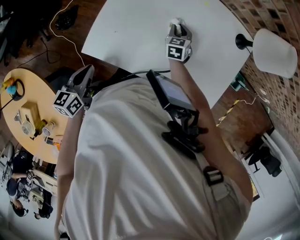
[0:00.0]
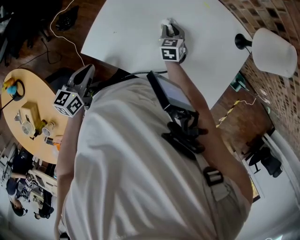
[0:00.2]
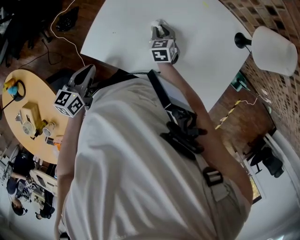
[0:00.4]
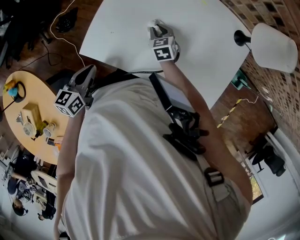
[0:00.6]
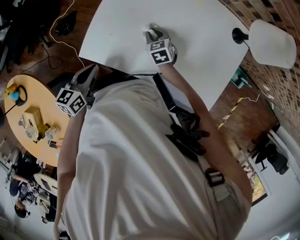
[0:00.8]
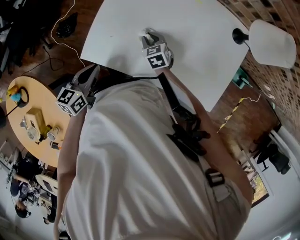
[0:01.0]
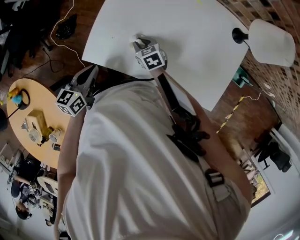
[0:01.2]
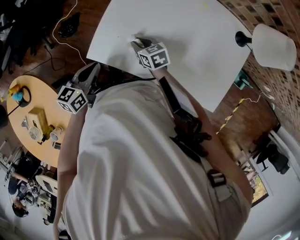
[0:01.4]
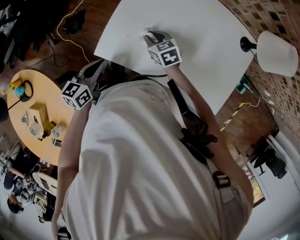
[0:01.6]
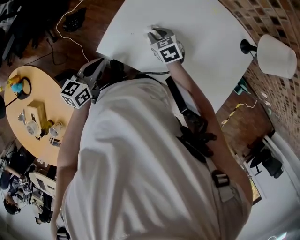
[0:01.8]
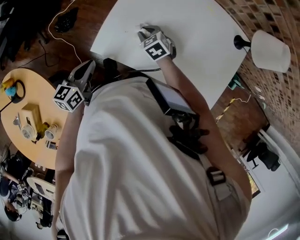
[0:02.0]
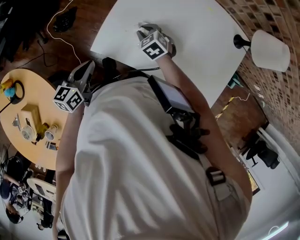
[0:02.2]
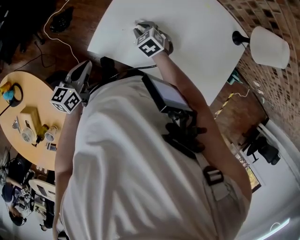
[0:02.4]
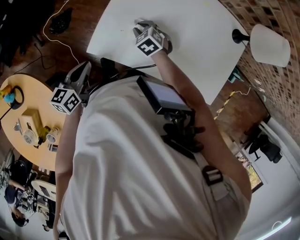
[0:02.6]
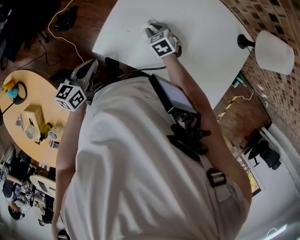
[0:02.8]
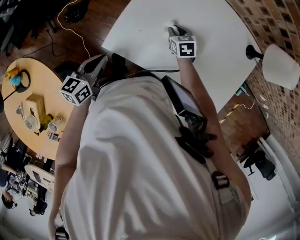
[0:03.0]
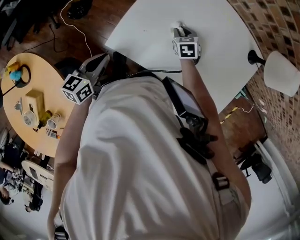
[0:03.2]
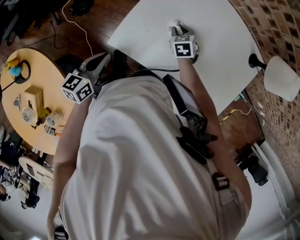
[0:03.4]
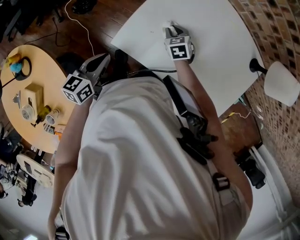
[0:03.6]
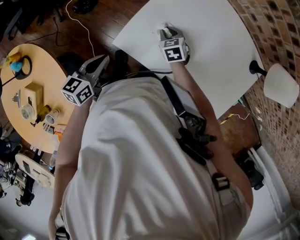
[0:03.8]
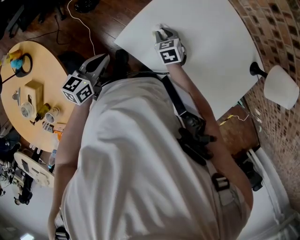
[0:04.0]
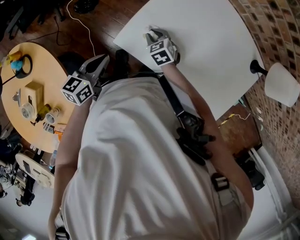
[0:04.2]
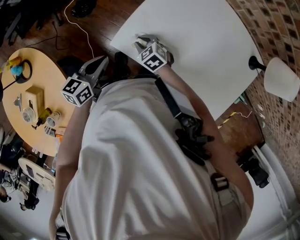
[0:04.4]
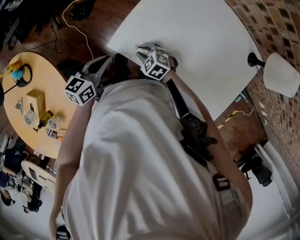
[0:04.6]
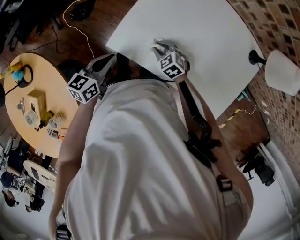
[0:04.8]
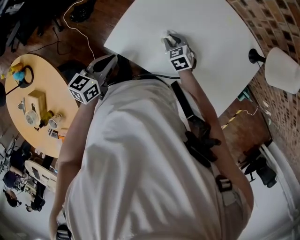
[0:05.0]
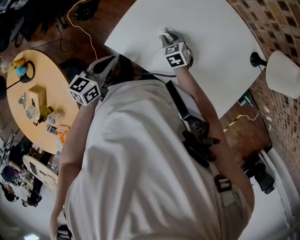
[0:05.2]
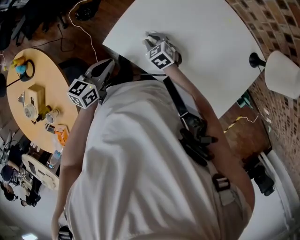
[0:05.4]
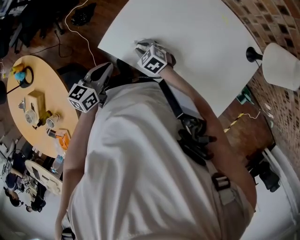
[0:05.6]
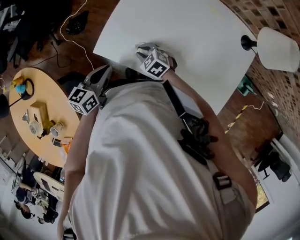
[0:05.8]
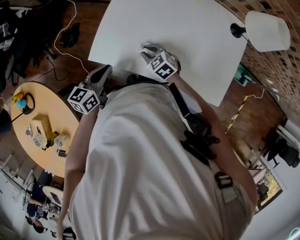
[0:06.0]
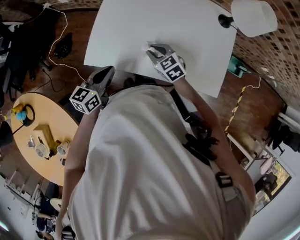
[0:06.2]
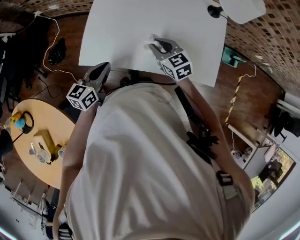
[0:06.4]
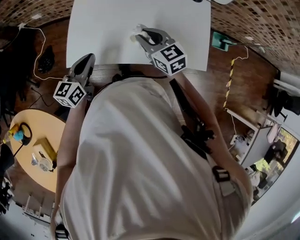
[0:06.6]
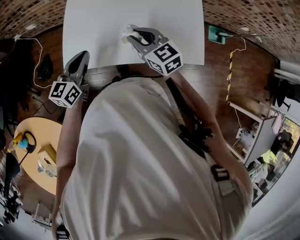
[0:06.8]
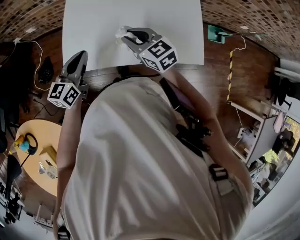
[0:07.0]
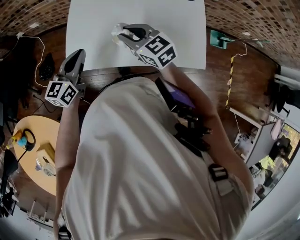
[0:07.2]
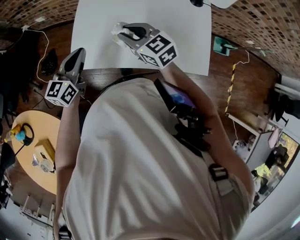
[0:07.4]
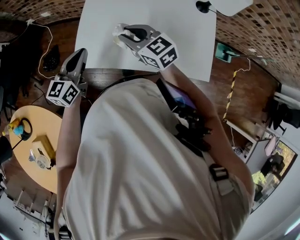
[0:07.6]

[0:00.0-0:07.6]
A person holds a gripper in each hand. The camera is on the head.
0:00.0 to 0:01.6: The right gripper shifts roughly 20 cm to the left and backward, and rotates approximately 40 degrees.
0:01.6 to 0:03.0: The right gripper shifts roughly 5 cm to the right.
0:03.0 to 0:04.6: The right gripper moves some 20 cm, and twists approximately 40 degrees counterclockwise, seen from behind.
0:04.6 to 0:06.0: The right gripper goes left and right, approximately 15 cm each way, reversing 2 times, and swivels approximately 20 degrees. The left gripper heads to the right, covering some 10 cm.
0:06.0 to 0:07.6: The right gripper heads upward, covering roughly 20 cm, and swivels roughly 30 degrees; the left gripper shifts about 10 cm upward and forward.

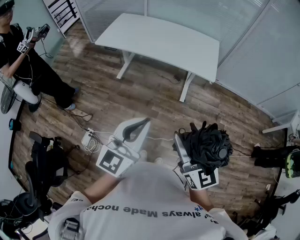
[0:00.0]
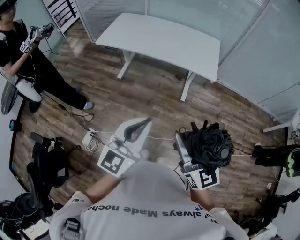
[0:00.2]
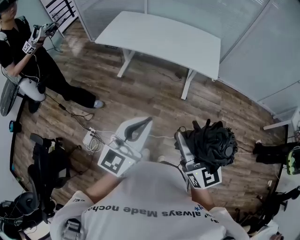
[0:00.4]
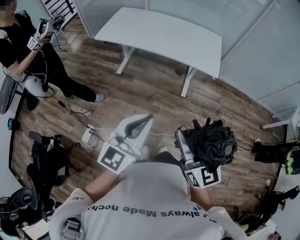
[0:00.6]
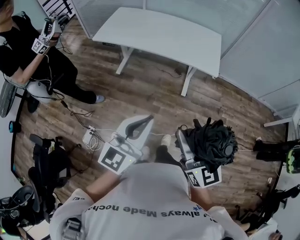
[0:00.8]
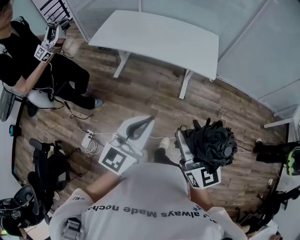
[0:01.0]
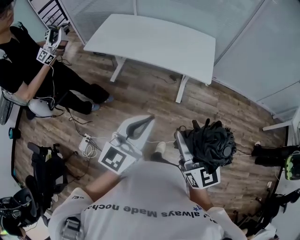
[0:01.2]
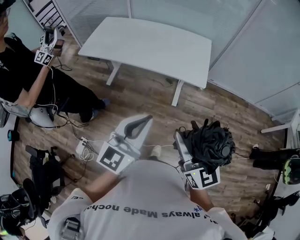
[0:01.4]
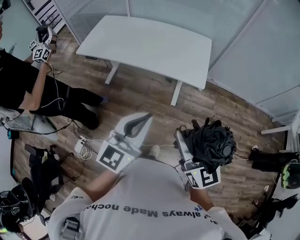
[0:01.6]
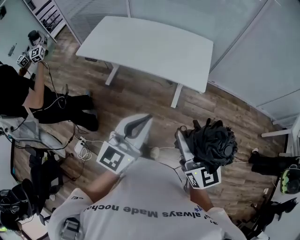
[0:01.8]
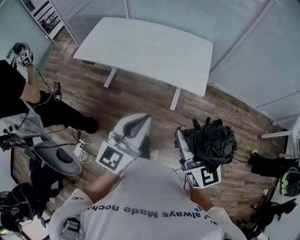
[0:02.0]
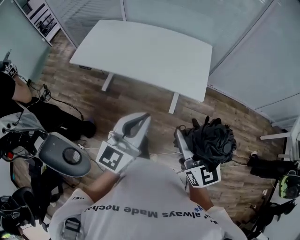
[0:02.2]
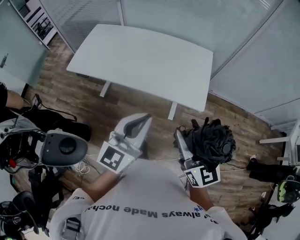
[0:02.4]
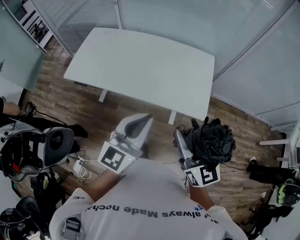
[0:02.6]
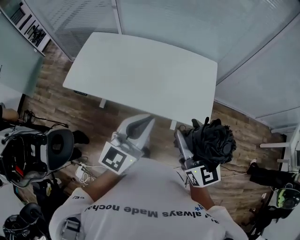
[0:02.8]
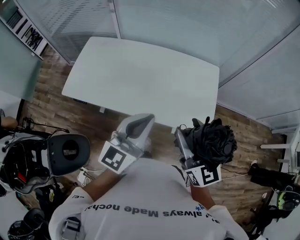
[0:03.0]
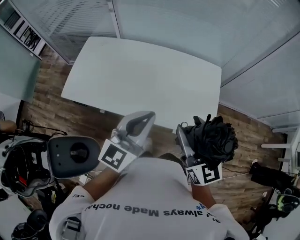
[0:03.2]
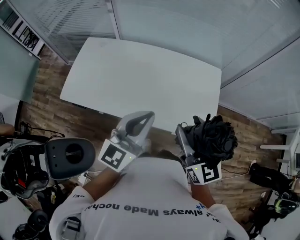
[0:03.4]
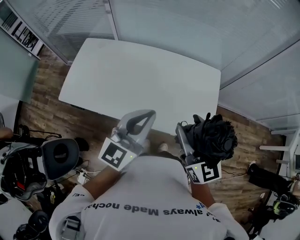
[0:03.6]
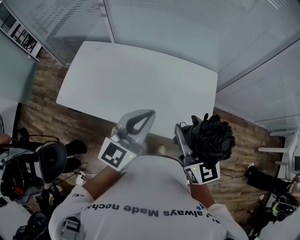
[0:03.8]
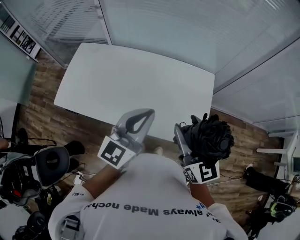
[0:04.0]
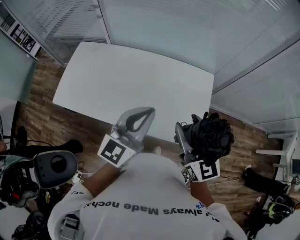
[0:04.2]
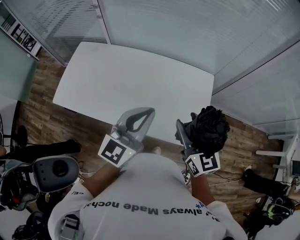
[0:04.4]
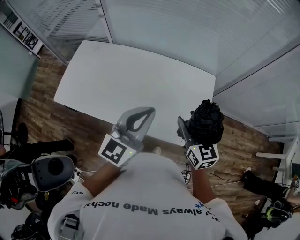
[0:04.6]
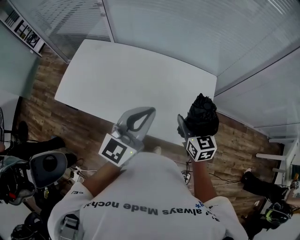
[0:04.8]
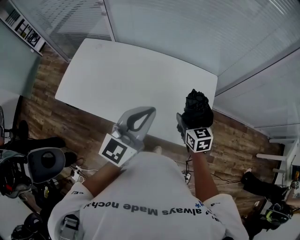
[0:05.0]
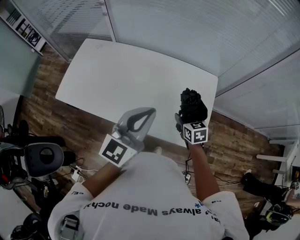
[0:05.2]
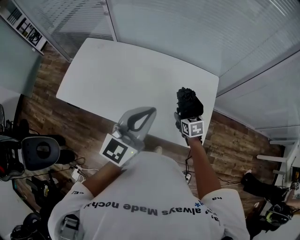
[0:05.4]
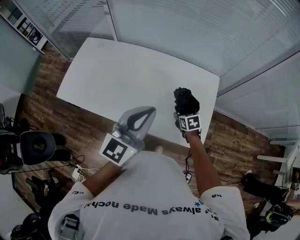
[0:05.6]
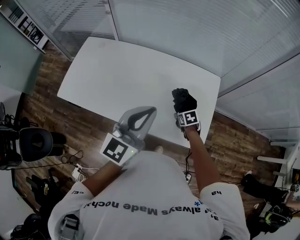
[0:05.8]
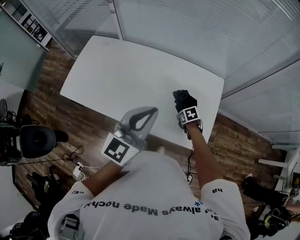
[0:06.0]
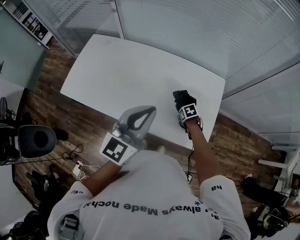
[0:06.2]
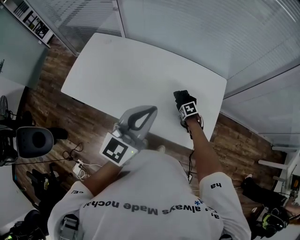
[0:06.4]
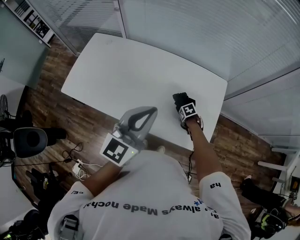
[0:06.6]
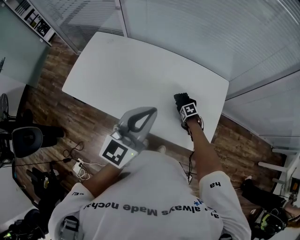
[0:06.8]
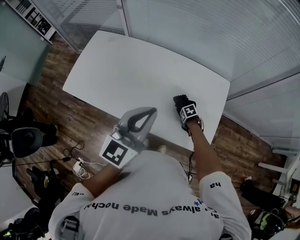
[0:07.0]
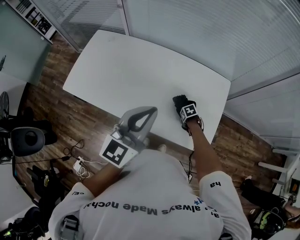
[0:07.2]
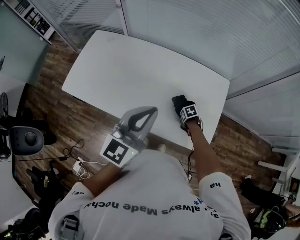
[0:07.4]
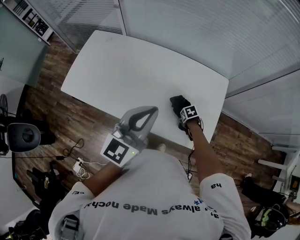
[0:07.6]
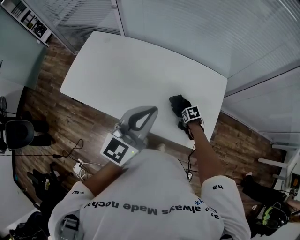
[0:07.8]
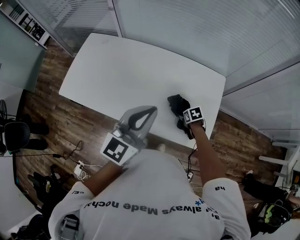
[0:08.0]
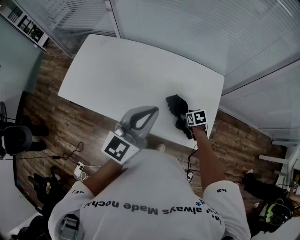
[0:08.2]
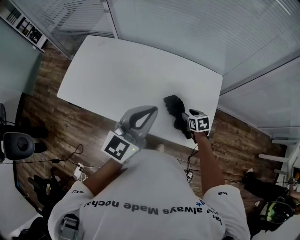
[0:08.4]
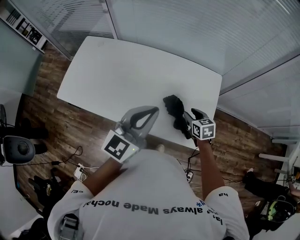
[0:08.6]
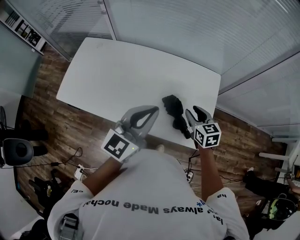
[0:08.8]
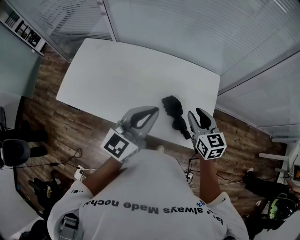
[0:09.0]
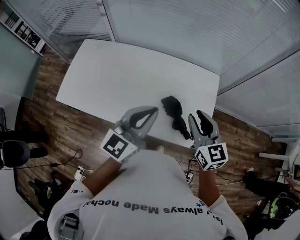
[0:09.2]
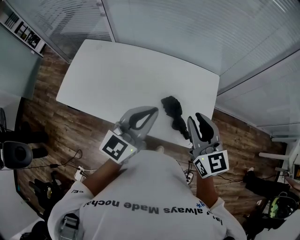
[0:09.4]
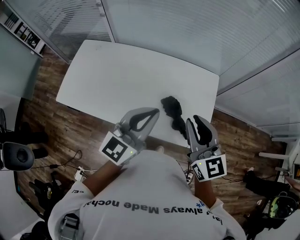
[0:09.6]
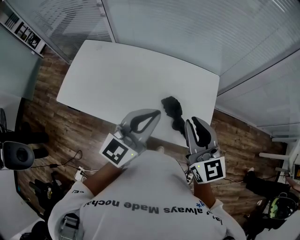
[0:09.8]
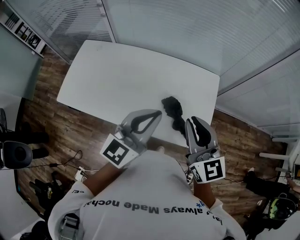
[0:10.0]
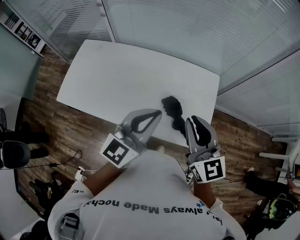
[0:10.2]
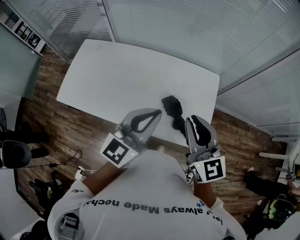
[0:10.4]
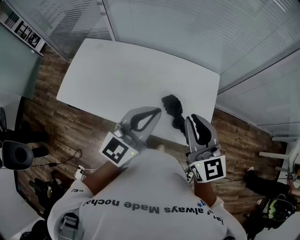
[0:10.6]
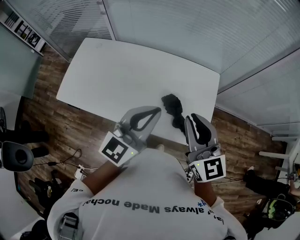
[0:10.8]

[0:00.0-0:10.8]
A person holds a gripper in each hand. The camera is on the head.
0:00.0 to 0:01.6: Both grippers move forward and to the right, some 25 cm.
0:01.6 to 0:03.0: The pair of grippers is taken forward, roughly 50 cm.
0:03.0 to 0:04.6: The right gripper travels forward, downward and to the right by about 25 cm, while the left gripper is displaced forward and to the right by approximately 20 cm.
0:04.6 to 0:06.2: The right gripper shifts roughly 35 cm downward, and points its fingers roughly 60 degrees further downward.
0:06.2 to 0:07.8: The grippers move only a little.
0:07.8 to 0:09.2: The right gripper shifts some 35 cm upward, tips its fingers upward by about 60 degrees, and closes its fingers.
0:09.2 to 0:10.8: The right gripper heads upward, covering about 5 cm.

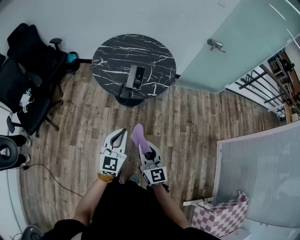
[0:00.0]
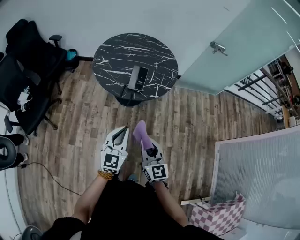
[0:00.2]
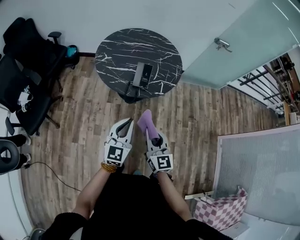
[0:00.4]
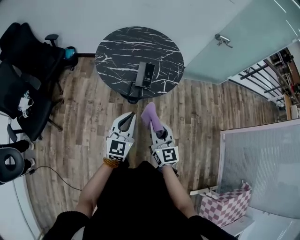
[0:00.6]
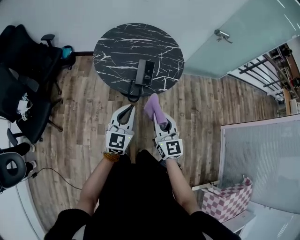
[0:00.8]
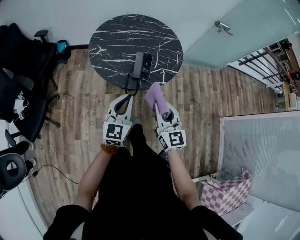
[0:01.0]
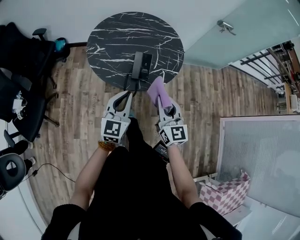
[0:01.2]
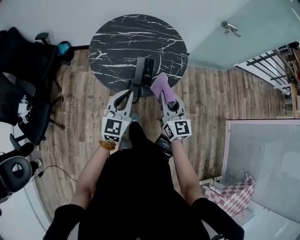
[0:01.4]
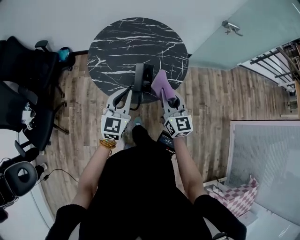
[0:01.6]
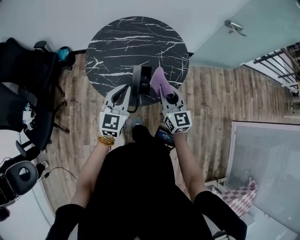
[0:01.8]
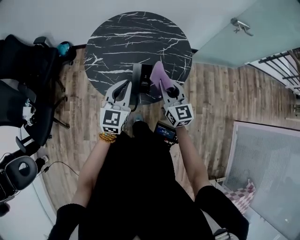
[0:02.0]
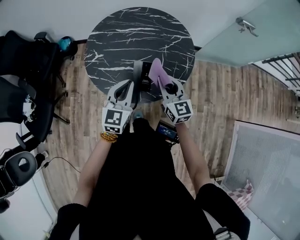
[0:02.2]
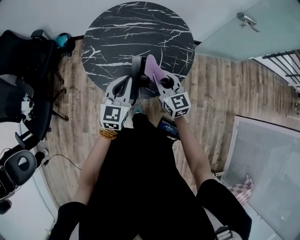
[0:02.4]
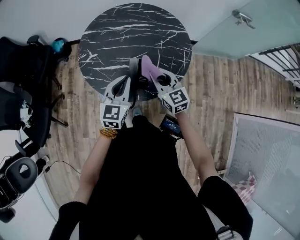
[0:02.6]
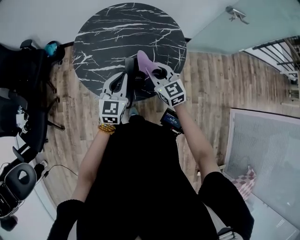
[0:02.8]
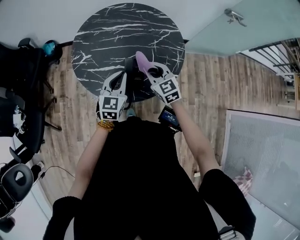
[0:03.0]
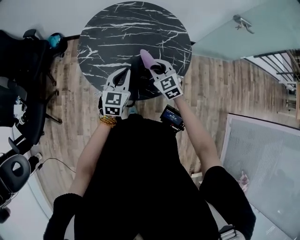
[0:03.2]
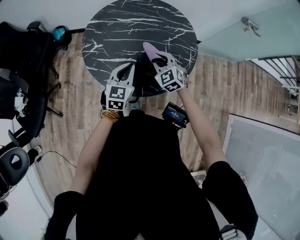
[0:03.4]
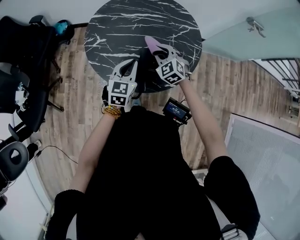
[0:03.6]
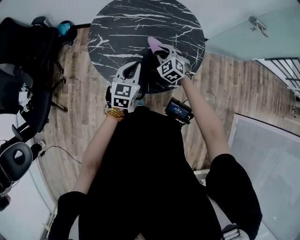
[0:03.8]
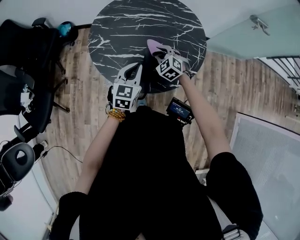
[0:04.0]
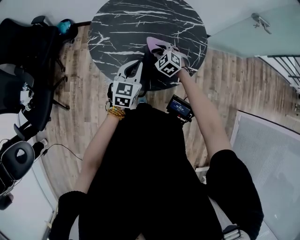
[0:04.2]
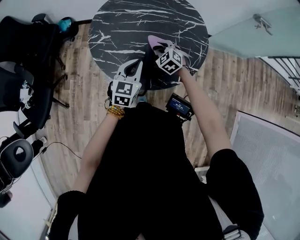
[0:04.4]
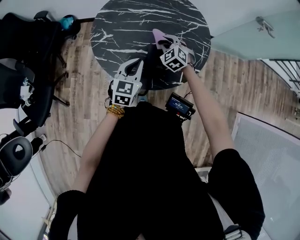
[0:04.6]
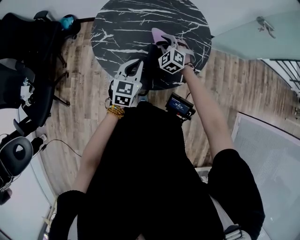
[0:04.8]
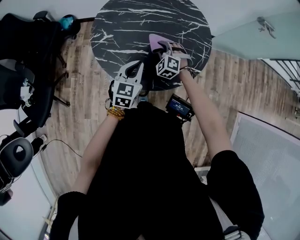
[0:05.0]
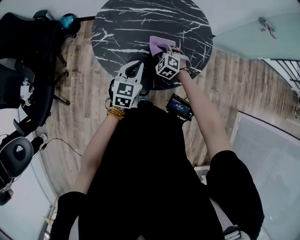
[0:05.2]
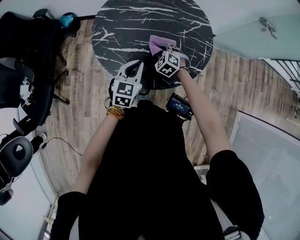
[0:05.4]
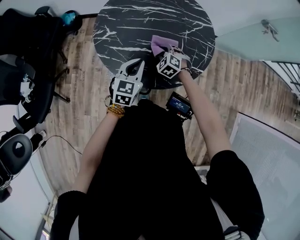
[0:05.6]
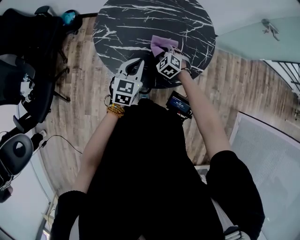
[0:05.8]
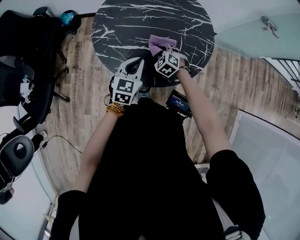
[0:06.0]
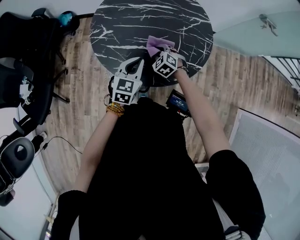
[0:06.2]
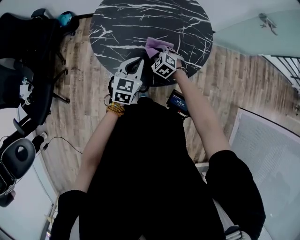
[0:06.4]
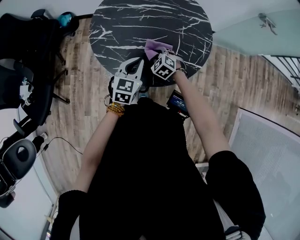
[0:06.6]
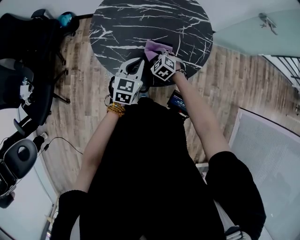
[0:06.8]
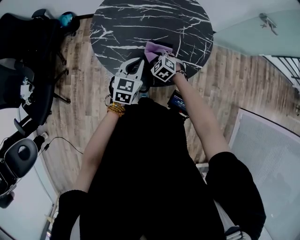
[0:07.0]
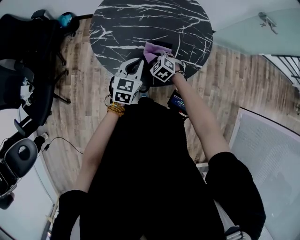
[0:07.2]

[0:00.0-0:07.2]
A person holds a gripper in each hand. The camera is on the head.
0:00.0 to 0:01.4: Both grippers move forward, roughly 25 cm.
0:01.4 to 0:02.8: The two grippers go approximately 20 cm forward and downward. The right gripper turns by some 20 degrees.
0:02.8 to 0:04.4: The left gripper heads downward, covering approximately 5 cm, while the right gripper is displaced downward and forward by some 15 cm, and swivels roughly 40 degrees.
0:04.4 to 0:05.8: The right gripper moves about 5 cm.
0:05.8 to 0:07.2: The right gripper changes place by about 5 cm.
